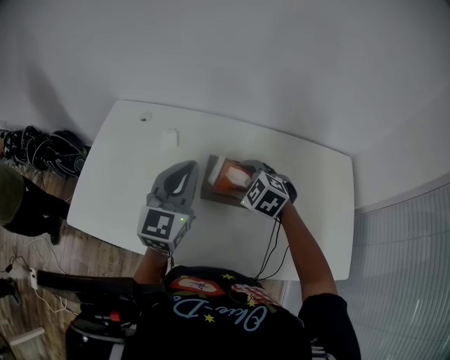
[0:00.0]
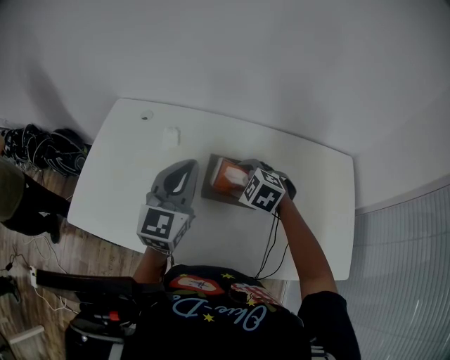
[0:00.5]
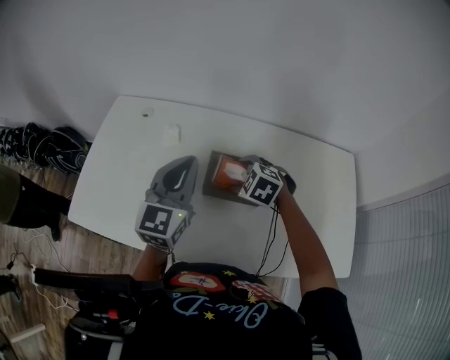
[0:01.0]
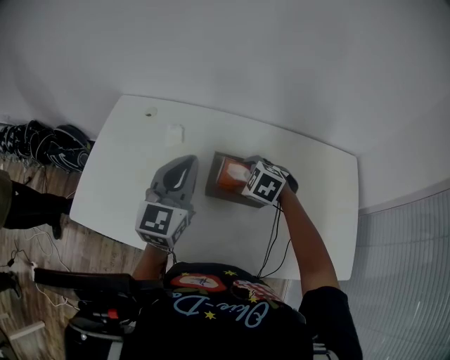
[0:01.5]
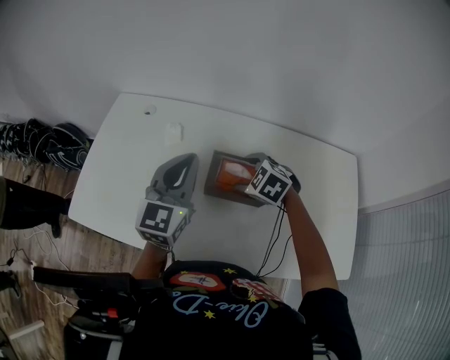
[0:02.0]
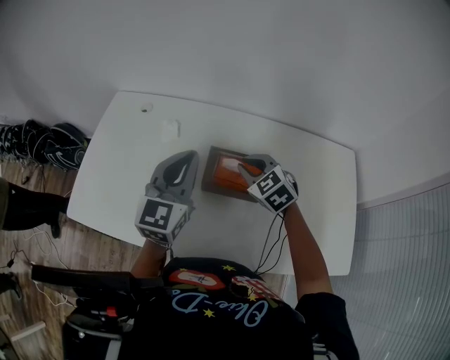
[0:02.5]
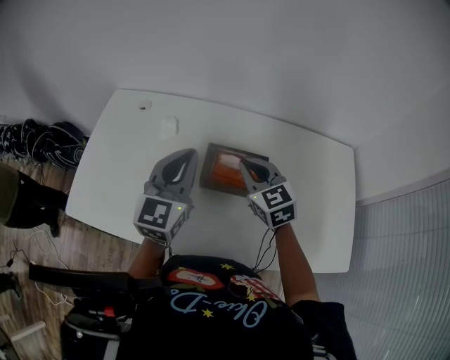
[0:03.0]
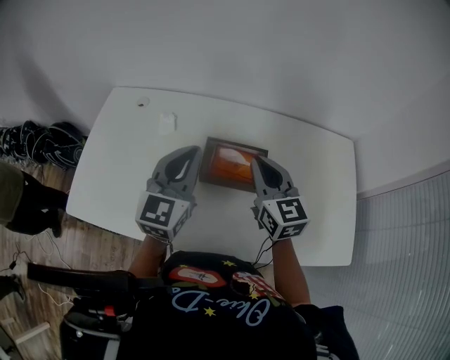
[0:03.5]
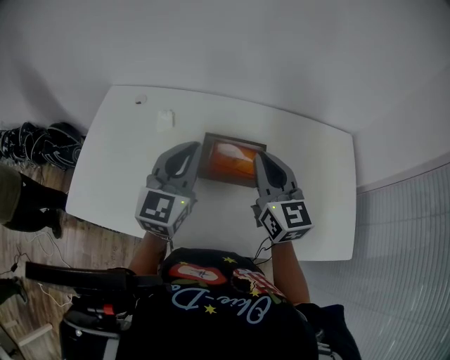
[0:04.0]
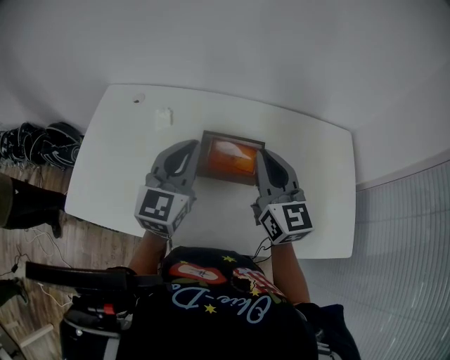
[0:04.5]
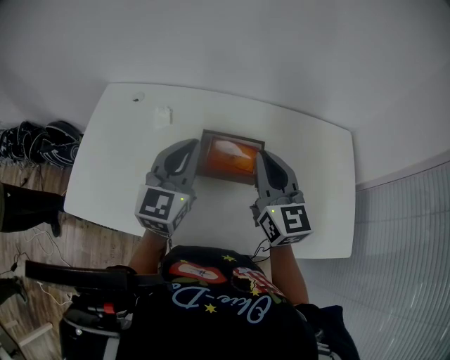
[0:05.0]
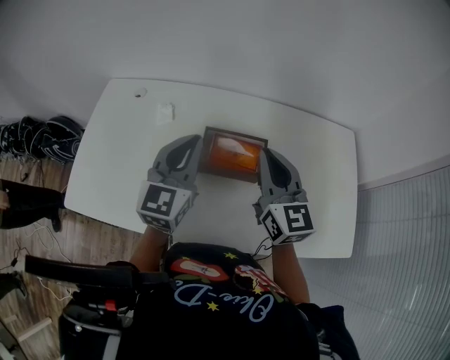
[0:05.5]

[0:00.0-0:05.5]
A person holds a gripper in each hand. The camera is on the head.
0:00.0 to 0:02.0: There are only small adjustments of the grippers.
0:02.0 to 0:03.5: The right gripper is displaced upward by roughly 15 cm, tilts its fingers some 50 degrees upward, and closes up.
0:03.5 to 0:05.5: The grippers stay close to where they were, moving slightly.

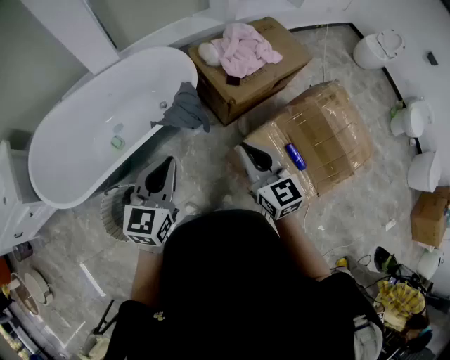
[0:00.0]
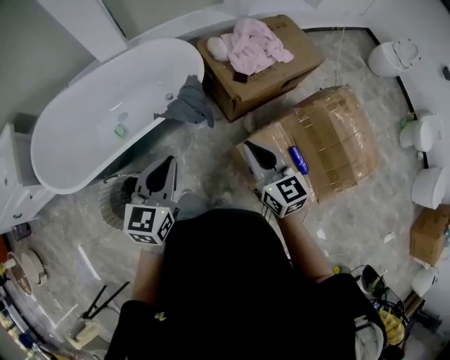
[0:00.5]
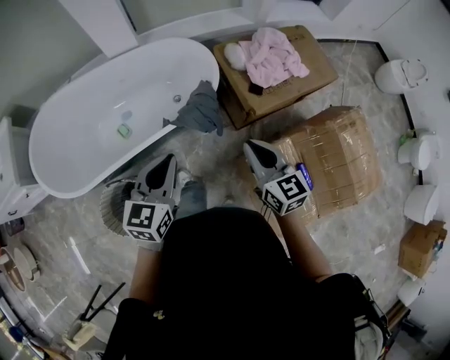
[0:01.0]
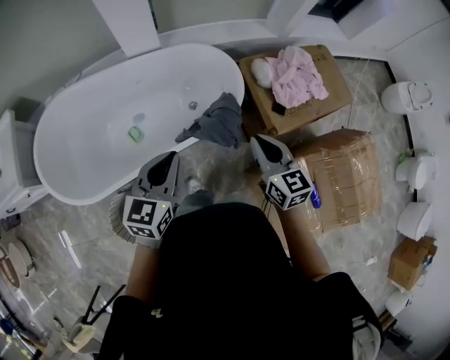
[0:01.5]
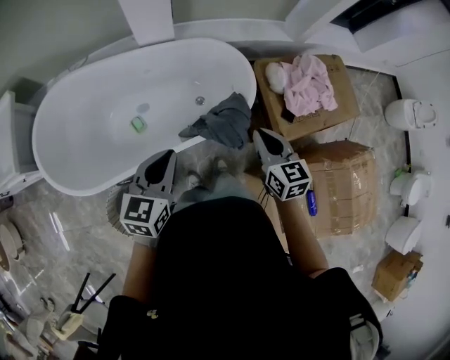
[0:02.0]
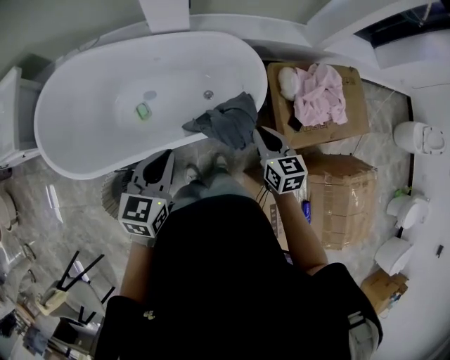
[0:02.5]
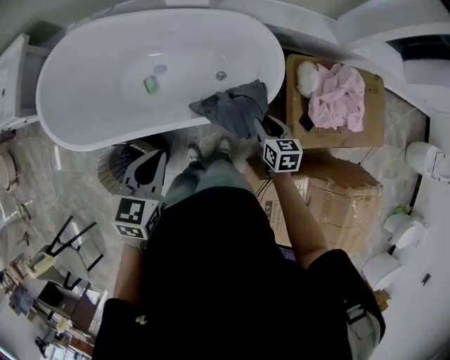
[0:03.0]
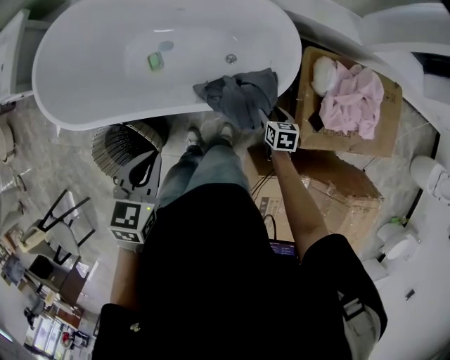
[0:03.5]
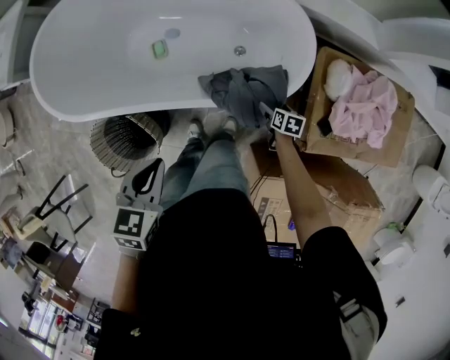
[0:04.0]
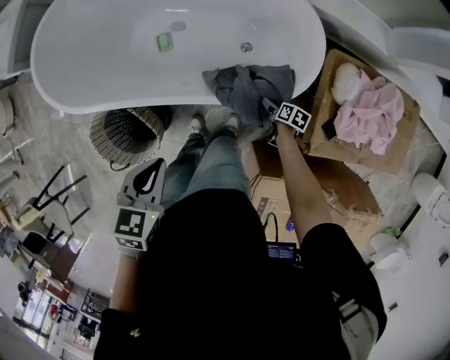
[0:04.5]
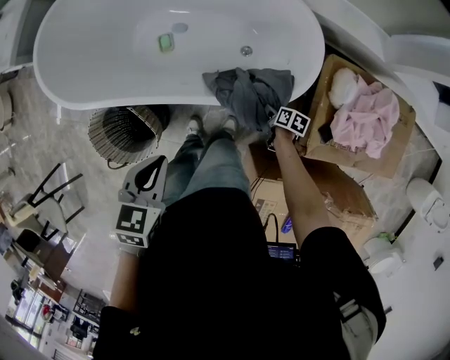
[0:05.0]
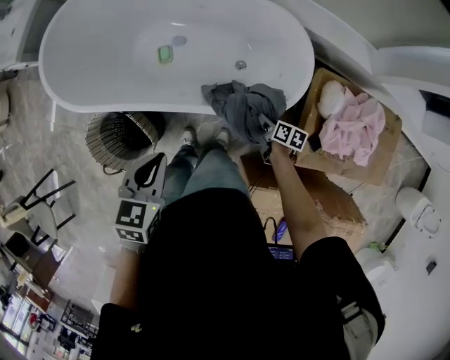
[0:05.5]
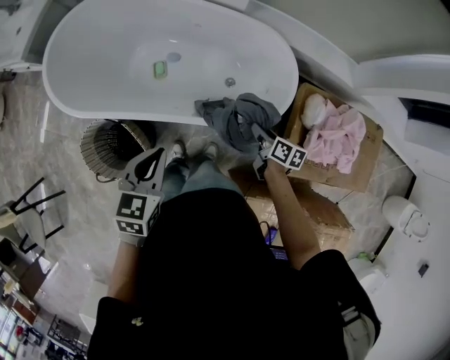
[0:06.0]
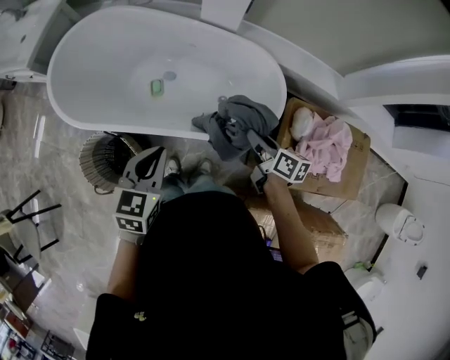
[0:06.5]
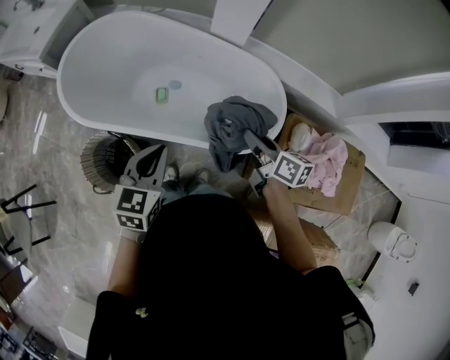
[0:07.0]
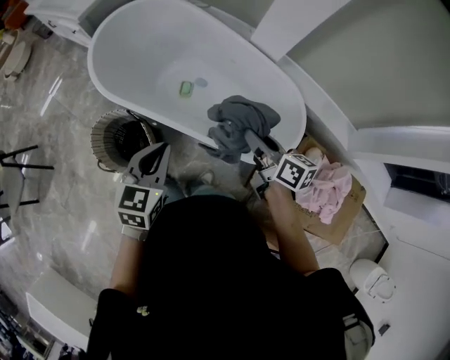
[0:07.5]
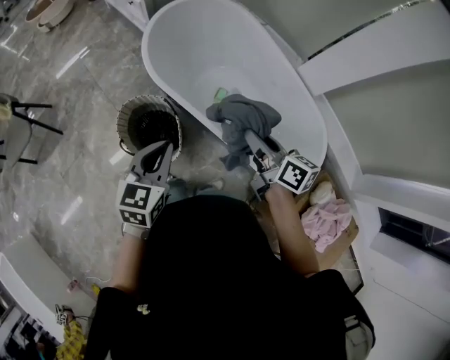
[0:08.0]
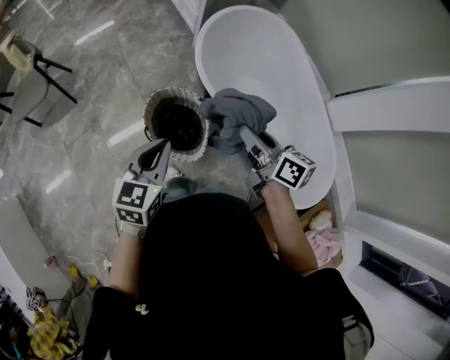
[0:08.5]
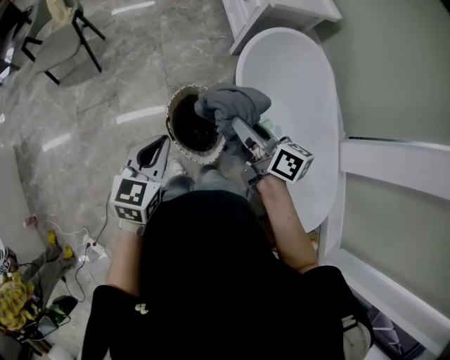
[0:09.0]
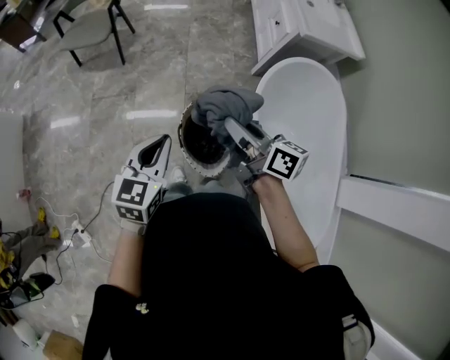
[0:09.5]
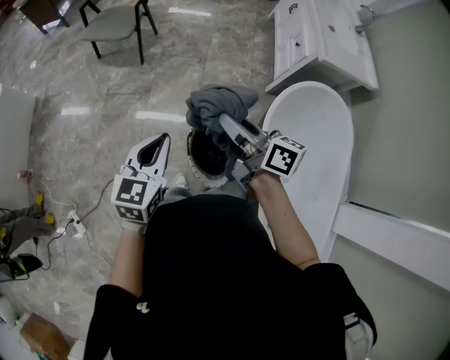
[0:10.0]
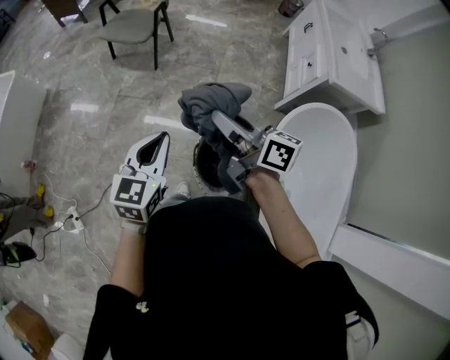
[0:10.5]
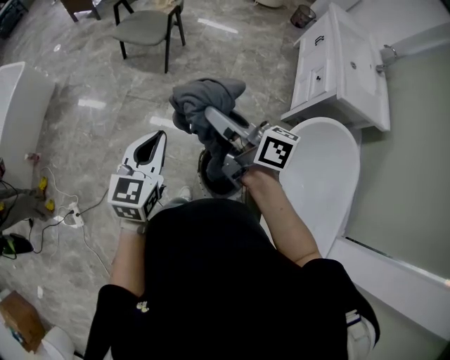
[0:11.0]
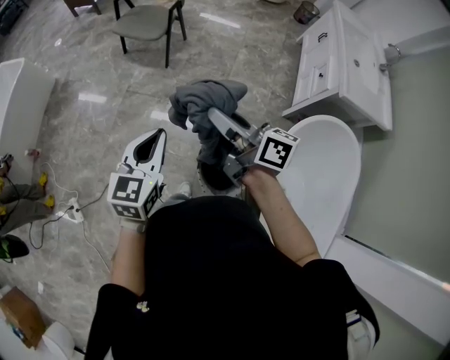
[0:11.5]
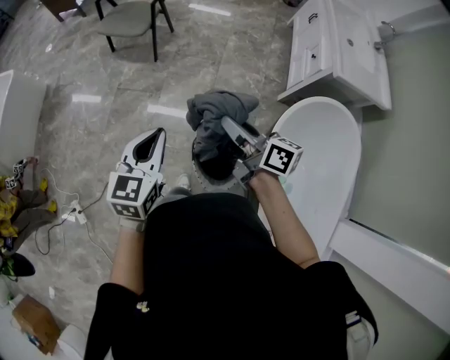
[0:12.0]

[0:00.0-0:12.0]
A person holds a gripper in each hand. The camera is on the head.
0:00.0 to 0:02.0: Both grippers move forward and to the left, some 35 cm.
0:02.0 to 0:04.0: The right gripper travels downward by about 50 cm, angles its fingers downward, by roughly 40 degrees, and opens its fingers; the left gripper moves downward, roughly 15 cm, and turns by roughly 30 degrees.
0:04.0 to 0:06.0: The right gripper shifts about 20 cm upward, changes its angle by approximately 30 degrees, and closes up, while the left gripper moves upward, roughly 5 cm.
0:06.0 to 0:08.0: The left gripper changes place by about 30 cm, and swivels about 30 degrees. The right gripper moves some 50 cm, and swivels some 40 degrees.
0:08.0 to 0:10.0: The left gripper shifts by roughly 35 cm, and swivels some 50 degrees. The right gripper changes place by some 50 cm, and rotates about 60 degrees.
0:10.0 to 0:12.0: Both grippers move forward, approximately 5 cm.

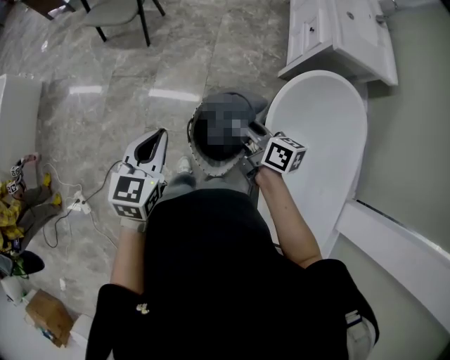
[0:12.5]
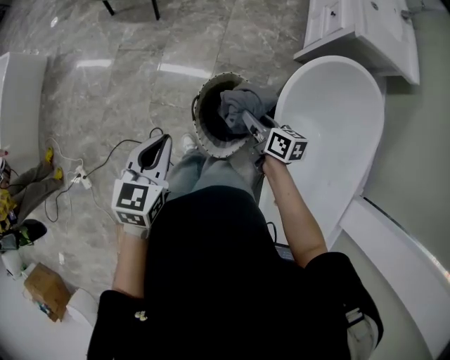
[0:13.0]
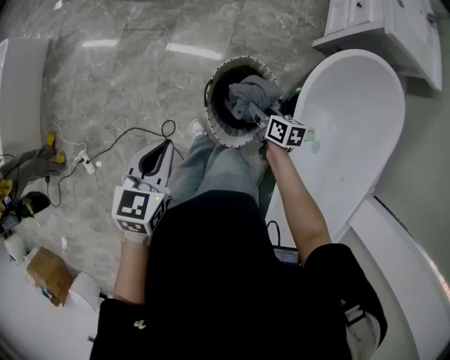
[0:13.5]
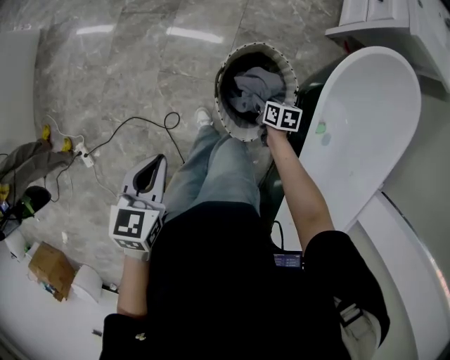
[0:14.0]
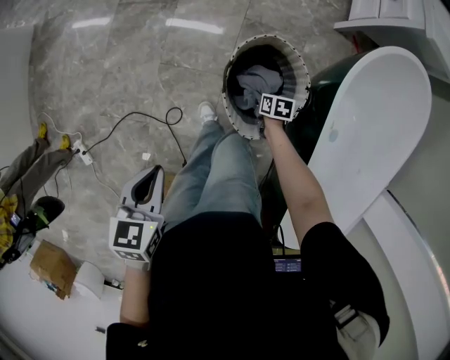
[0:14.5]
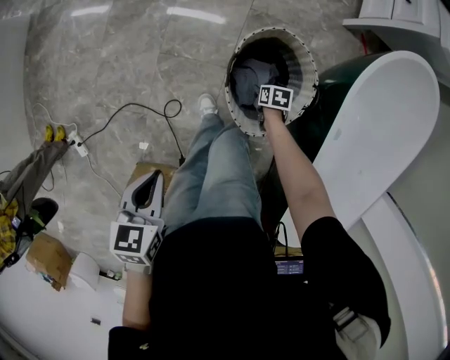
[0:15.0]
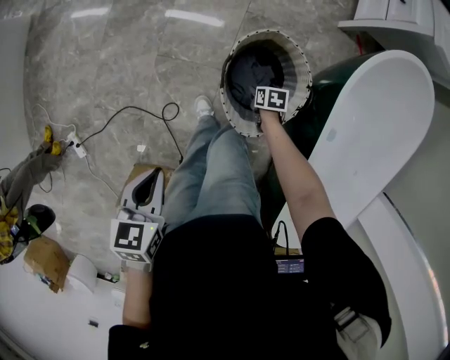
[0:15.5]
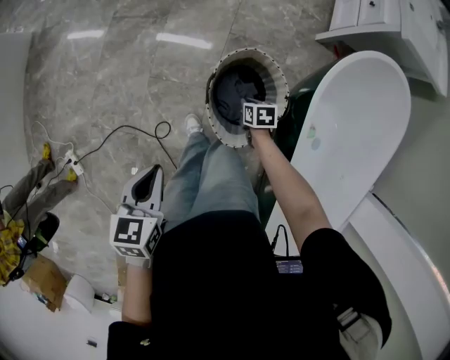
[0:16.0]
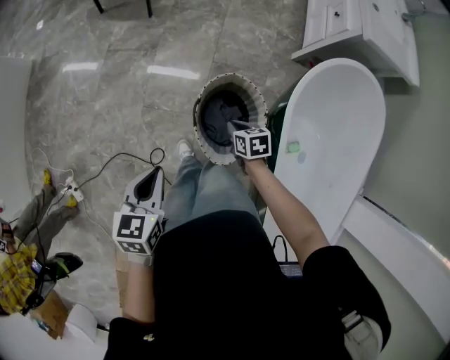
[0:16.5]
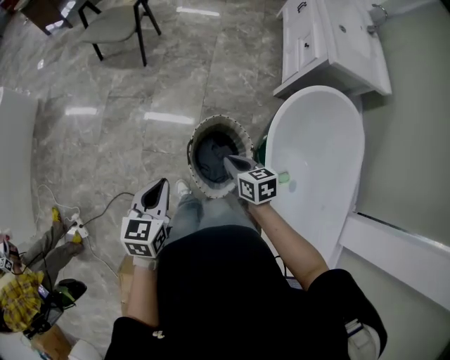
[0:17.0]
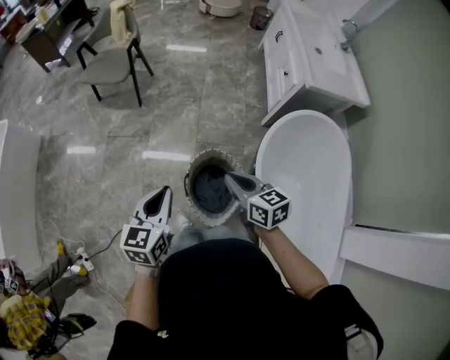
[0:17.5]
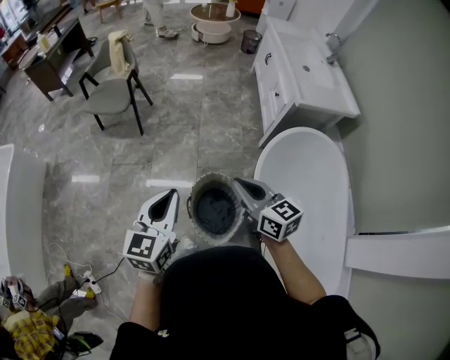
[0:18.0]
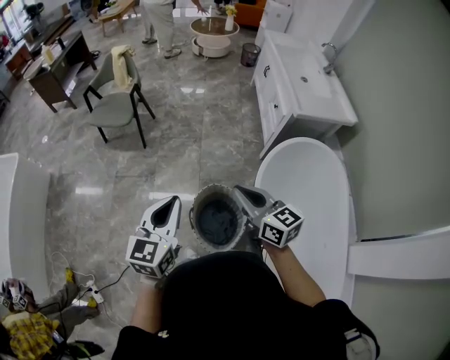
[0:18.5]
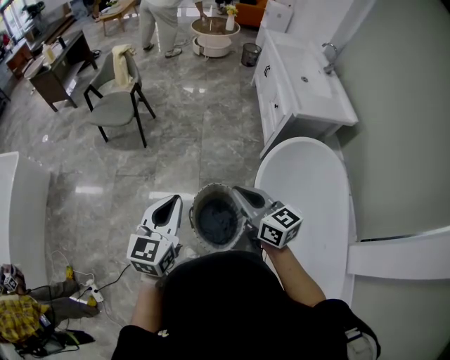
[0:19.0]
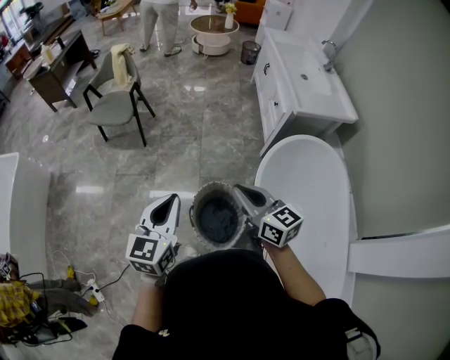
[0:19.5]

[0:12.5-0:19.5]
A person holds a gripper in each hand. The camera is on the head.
0:12.5 to 0:14.5: The right gripper moves downward, roughly 50 cm, and tilts its fingers some 50 degrees downward. Meanwhile the left gripper shifts roughly 30 cm downward, to the left and backward, and turns by about 30 degrees.
0:14.5 to 0:16.0: The right gripper heads upward, covering roughly 5 cm.
0:16.0 to 0:17.5: The left gripper goes roughly 25 cm upward, to the right and forward, and changes its angle by some 30 degrees; the right gripper heads upward, covering some 50 cm, and tips its fingers upward by about 40 degrees.
0:17.5 to 0:19.5: The grippers both shift upward by roughly 10 cm.

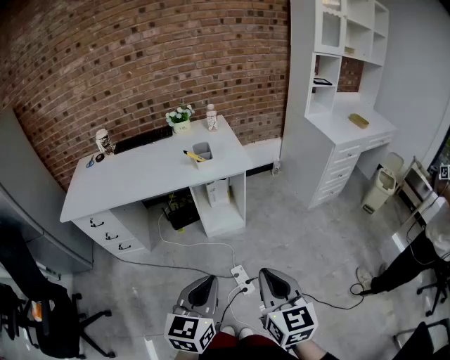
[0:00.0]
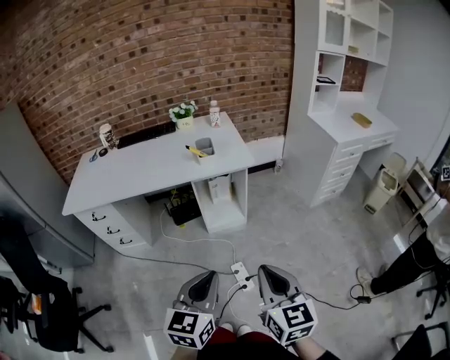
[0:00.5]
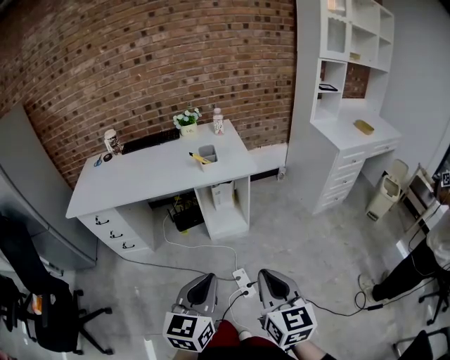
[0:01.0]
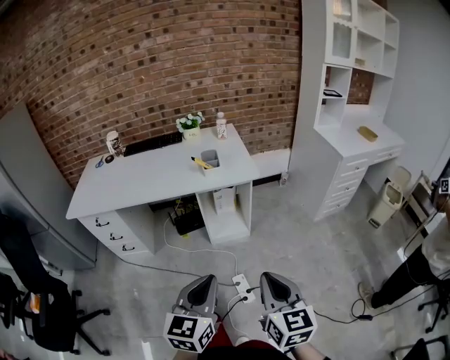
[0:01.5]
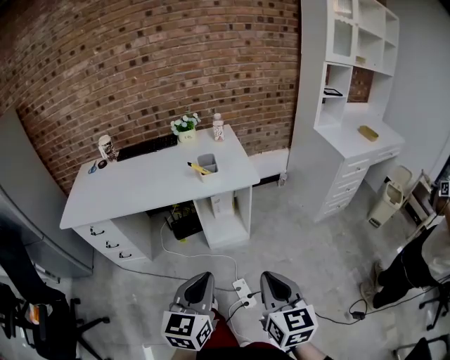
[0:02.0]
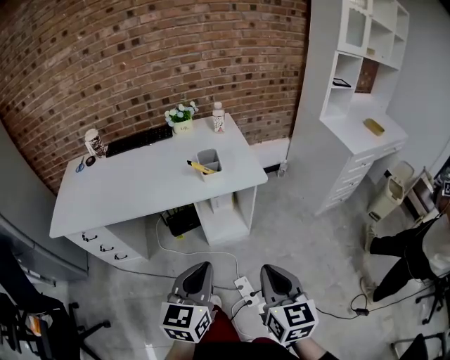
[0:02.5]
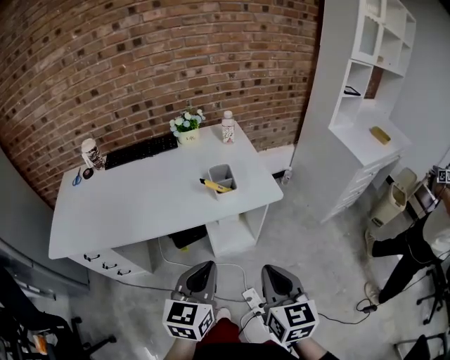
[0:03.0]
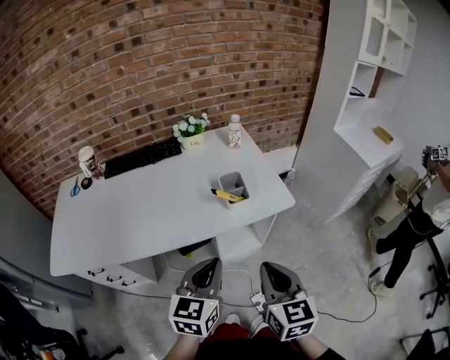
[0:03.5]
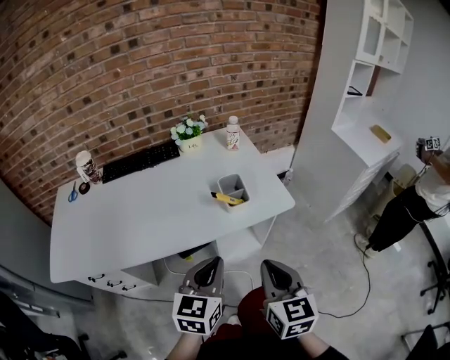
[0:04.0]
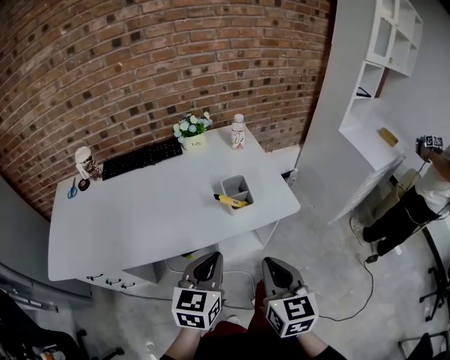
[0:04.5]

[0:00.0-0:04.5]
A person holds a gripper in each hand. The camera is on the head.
0:00.0 to 0:02.0: Both grippers move forward, some 5 cm.
0:02.0 to 0:04.5: The two grippers go about 35 cm forward and to the left.
